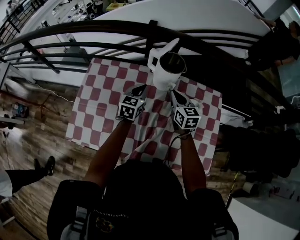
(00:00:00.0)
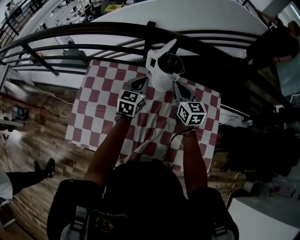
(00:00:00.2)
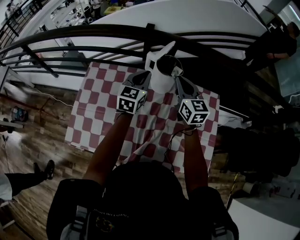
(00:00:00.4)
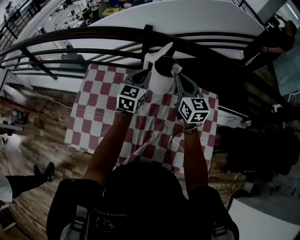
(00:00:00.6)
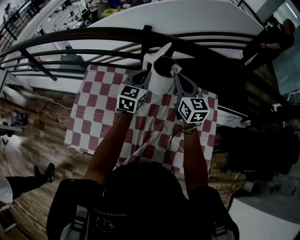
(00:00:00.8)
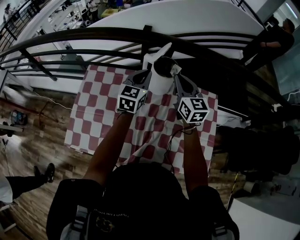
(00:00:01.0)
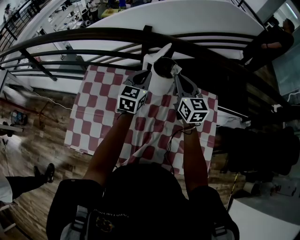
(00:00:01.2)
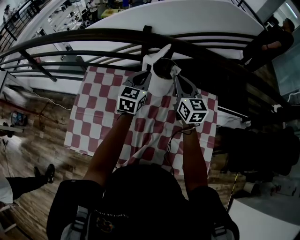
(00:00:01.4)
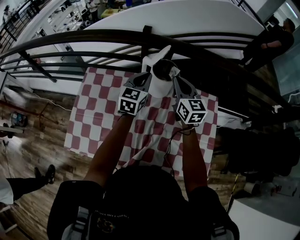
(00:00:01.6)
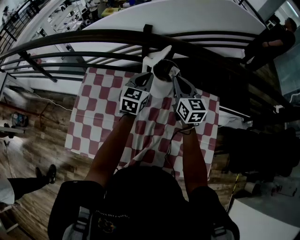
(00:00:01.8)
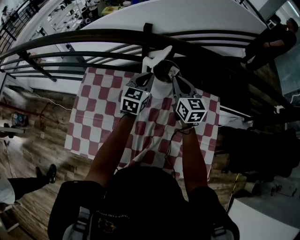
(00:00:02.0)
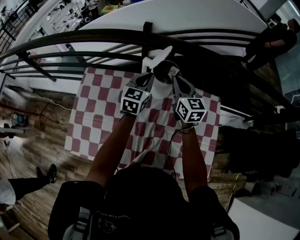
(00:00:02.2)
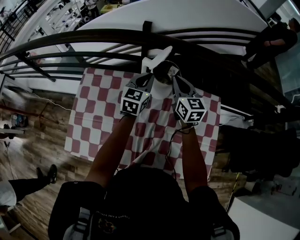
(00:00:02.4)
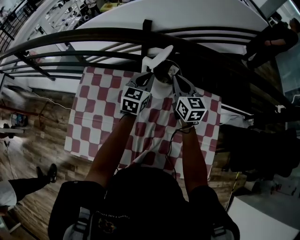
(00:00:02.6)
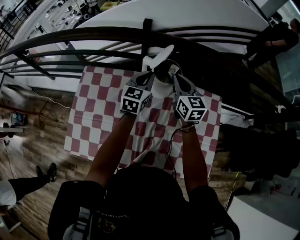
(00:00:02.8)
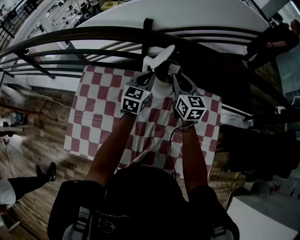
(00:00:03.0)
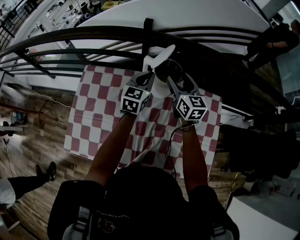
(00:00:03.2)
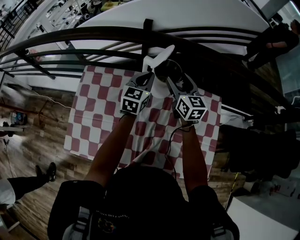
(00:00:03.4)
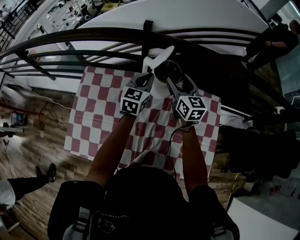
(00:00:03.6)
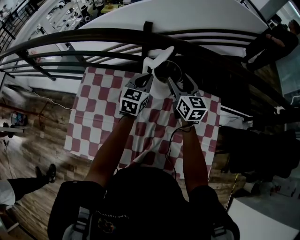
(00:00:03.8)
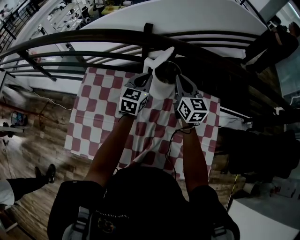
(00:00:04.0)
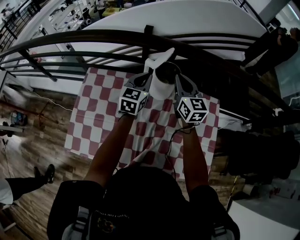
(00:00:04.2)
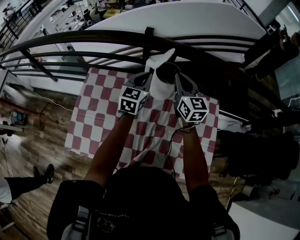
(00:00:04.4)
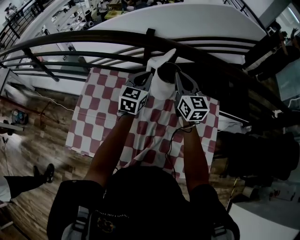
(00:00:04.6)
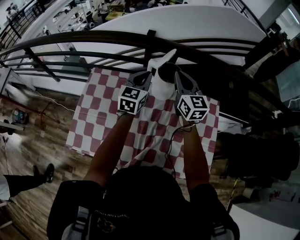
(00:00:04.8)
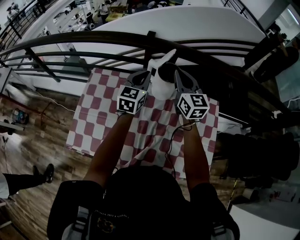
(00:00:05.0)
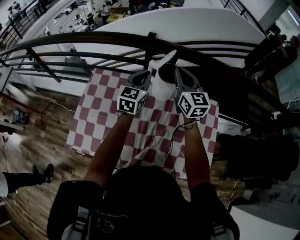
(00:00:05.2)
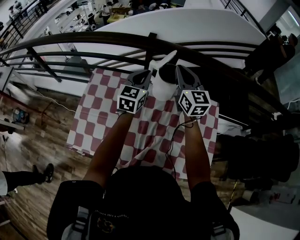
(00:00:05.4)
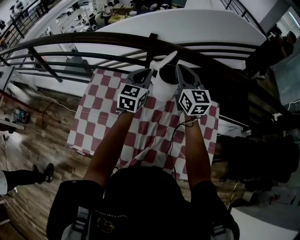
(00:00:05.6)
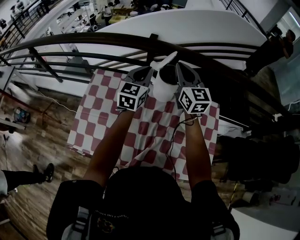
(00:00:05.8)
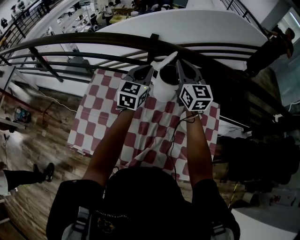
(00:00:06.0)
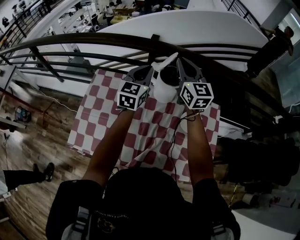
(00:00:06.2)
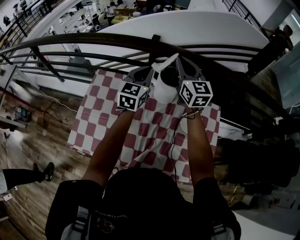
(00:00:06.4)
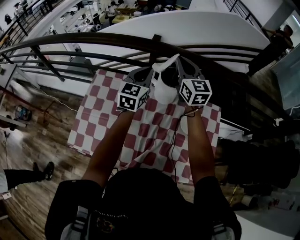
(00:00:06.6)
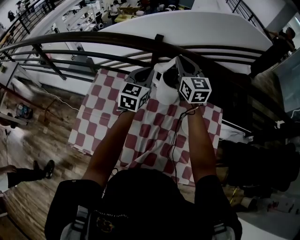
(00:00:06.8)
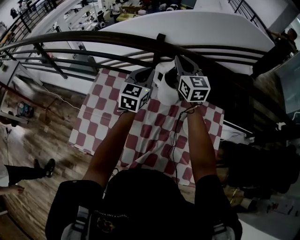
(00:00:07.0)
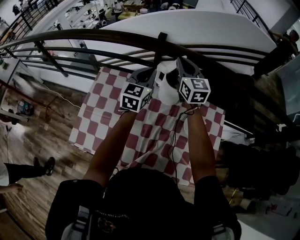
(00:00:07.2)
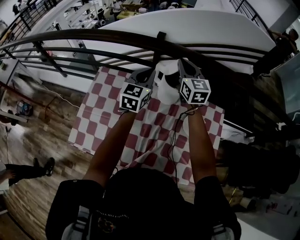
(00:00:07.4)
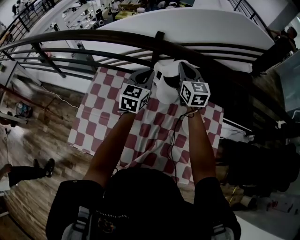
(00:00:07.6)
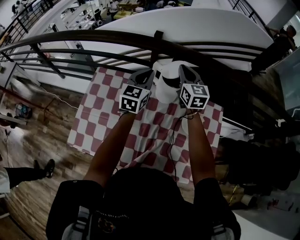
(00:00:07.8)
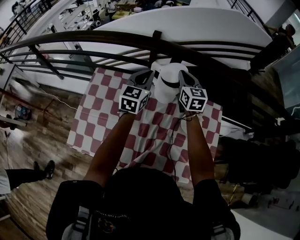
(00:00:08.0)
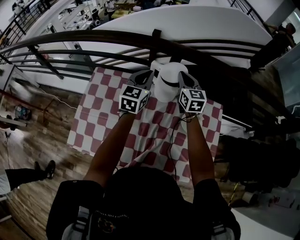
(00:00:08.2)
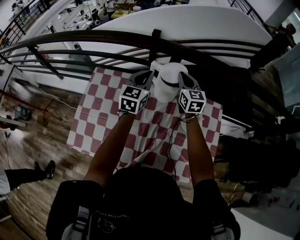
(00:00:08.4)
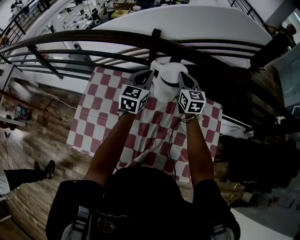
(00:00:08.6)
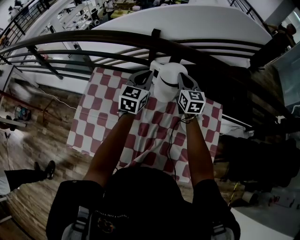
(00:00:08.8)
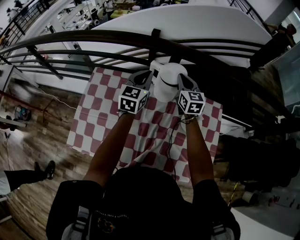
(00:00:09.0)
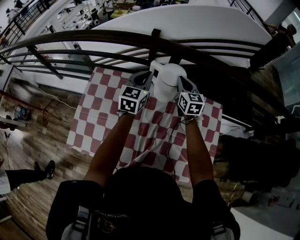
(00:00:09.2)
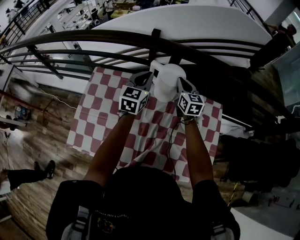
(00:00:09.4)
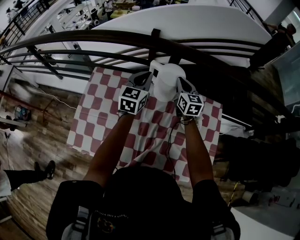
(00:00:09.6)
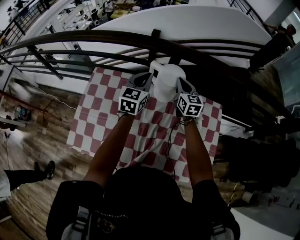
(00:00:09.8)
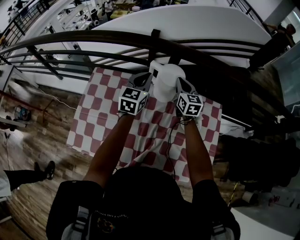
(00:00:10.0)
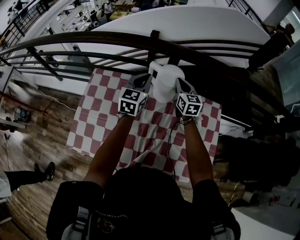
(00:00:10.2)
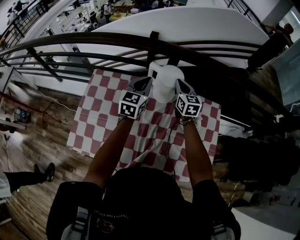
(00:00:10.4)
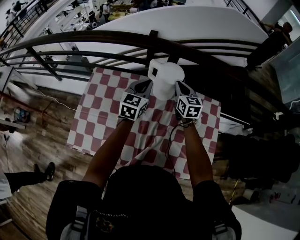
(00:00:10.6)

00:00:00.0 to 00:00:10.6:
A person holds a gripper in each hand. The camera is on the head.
00:00:00.0 to 00:00:01.6: Both grippers move upward and forward, roughly 10 cm.
00:00:01.6 to 00:00:03.0: The right gripper moves approximately 5 cm.
00:00:03.0 to 00:00:04.6: The left gripper changes place by some 5 cm. The right gripper travels upward by approximately 5 cm, and opens, then closes again.
00:00:04.6 to 00:00:06.0: The grippers both shift upward by roughly 5 cm.
00:00:06.0 to 00:00:07.6: The right gripper goes some 10 cm downward and forward.
00:00:07.6 to 00:00:09.0: The right gripper is displaced downward by about 10 cm.
00:00:09.0 to 00:00:10.6: The left gripper changes place by some 5 cm. Meanwhile the right gripper changes place by roughly 5 cm.

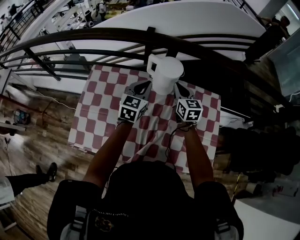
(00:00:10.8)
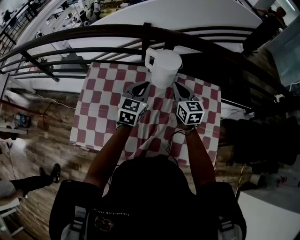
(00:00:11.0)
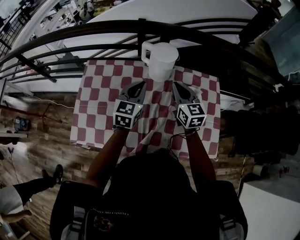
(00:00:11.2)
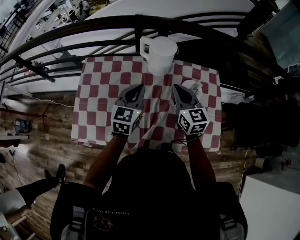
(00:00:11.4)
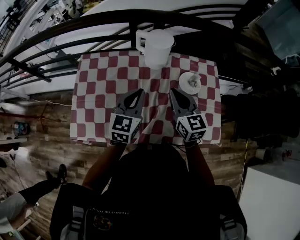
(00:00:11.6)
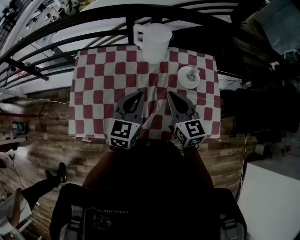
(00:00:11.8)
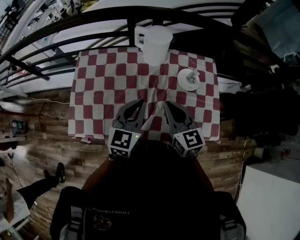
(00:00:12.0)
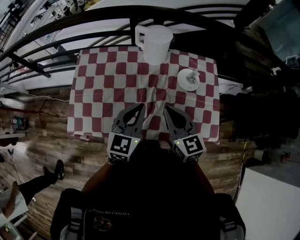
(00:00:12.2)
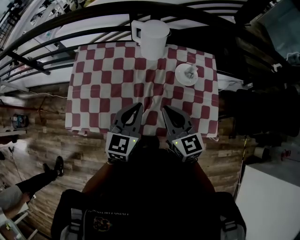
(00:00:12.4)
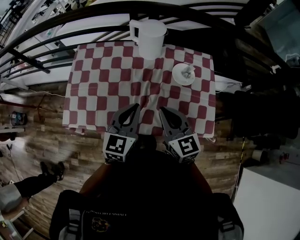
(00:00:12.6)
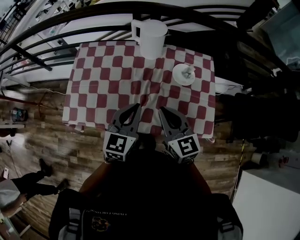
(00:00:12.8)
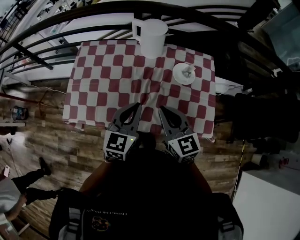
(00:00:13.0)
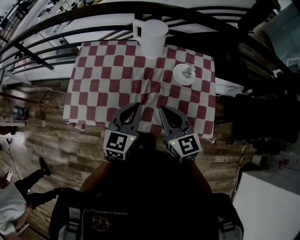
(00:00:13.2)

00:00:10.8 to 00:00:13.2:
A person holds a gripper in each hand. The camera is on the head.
00:00:10.8 to 00:00:12.0: The grippers both shift backward by about 25 cm.
00:00:12.0 to 00:00:13.2: The grippers both shift backward by roughly 5 cm.

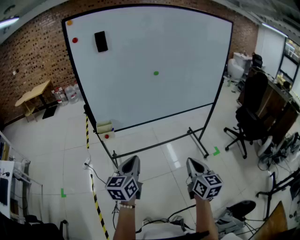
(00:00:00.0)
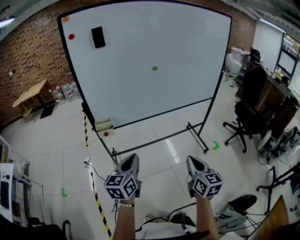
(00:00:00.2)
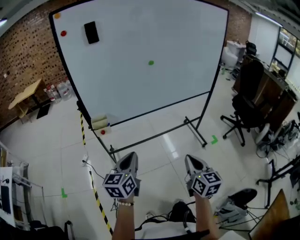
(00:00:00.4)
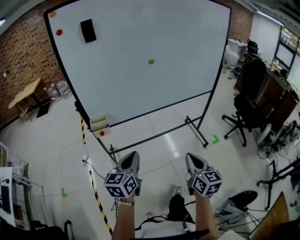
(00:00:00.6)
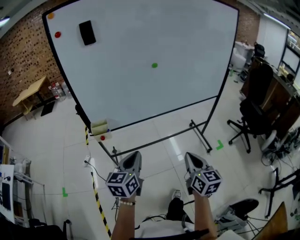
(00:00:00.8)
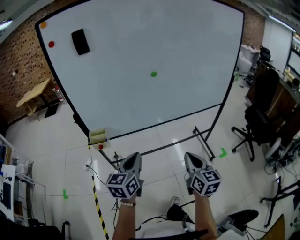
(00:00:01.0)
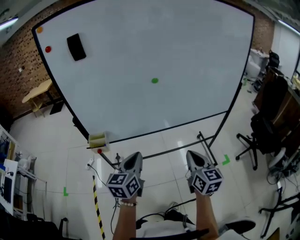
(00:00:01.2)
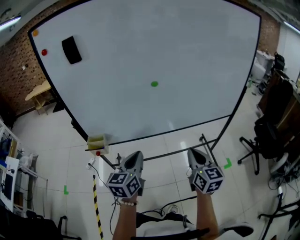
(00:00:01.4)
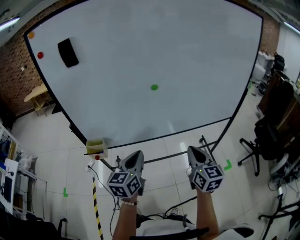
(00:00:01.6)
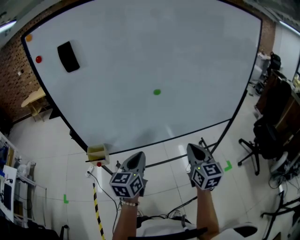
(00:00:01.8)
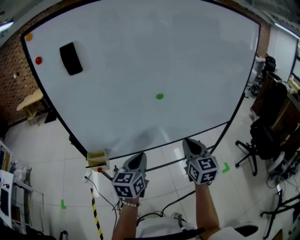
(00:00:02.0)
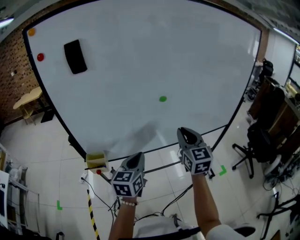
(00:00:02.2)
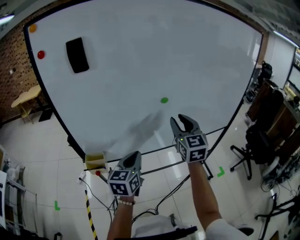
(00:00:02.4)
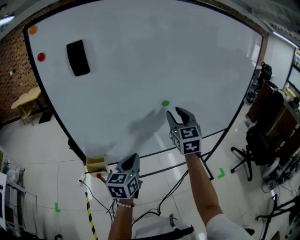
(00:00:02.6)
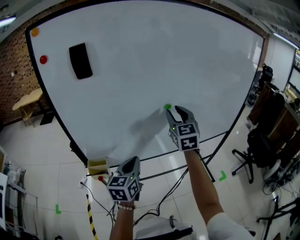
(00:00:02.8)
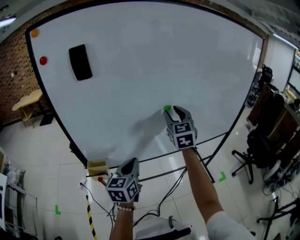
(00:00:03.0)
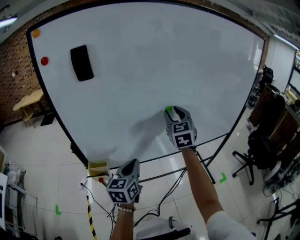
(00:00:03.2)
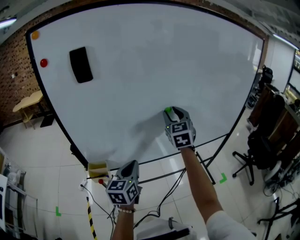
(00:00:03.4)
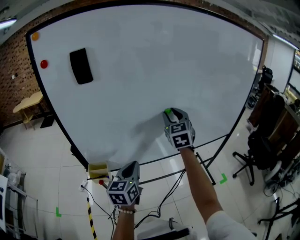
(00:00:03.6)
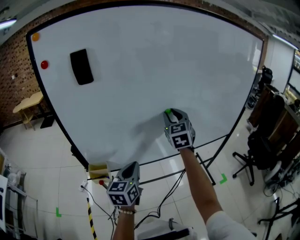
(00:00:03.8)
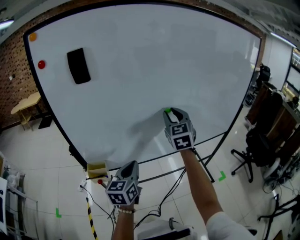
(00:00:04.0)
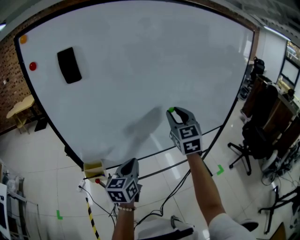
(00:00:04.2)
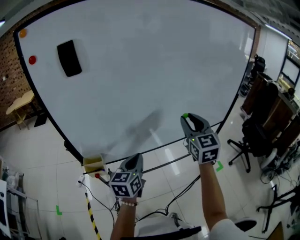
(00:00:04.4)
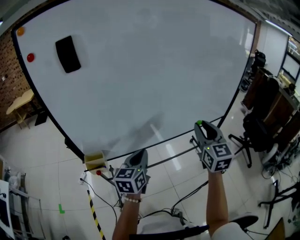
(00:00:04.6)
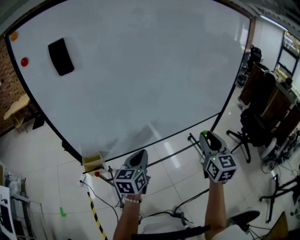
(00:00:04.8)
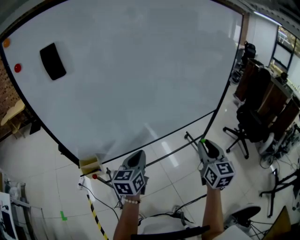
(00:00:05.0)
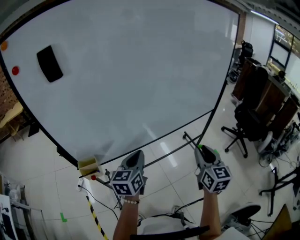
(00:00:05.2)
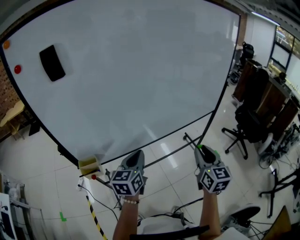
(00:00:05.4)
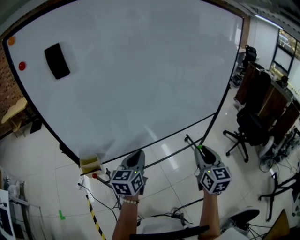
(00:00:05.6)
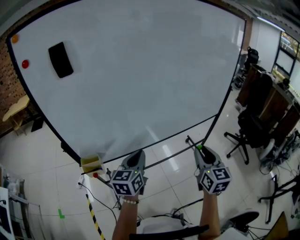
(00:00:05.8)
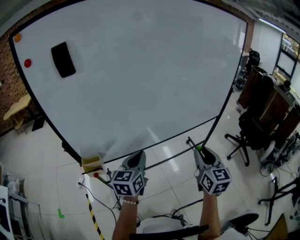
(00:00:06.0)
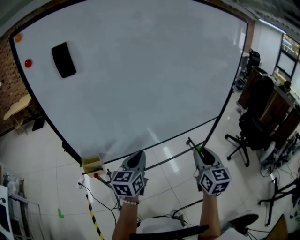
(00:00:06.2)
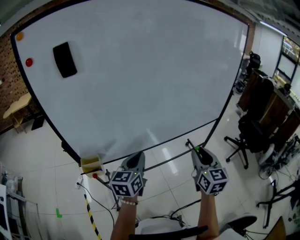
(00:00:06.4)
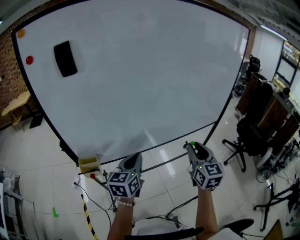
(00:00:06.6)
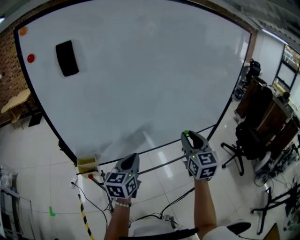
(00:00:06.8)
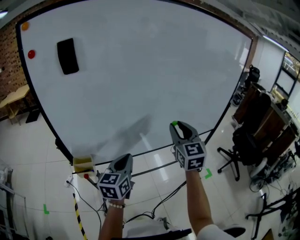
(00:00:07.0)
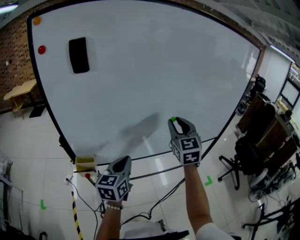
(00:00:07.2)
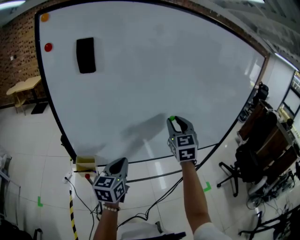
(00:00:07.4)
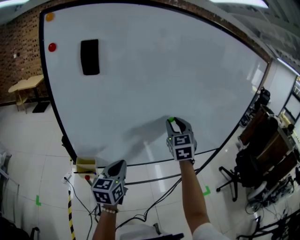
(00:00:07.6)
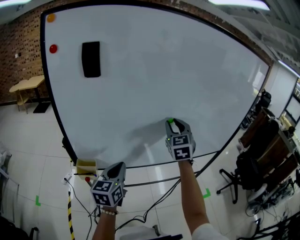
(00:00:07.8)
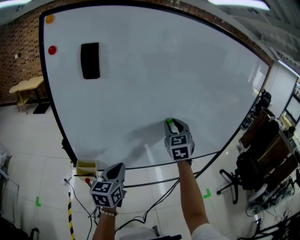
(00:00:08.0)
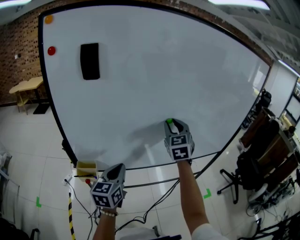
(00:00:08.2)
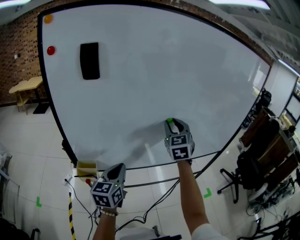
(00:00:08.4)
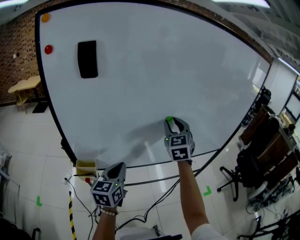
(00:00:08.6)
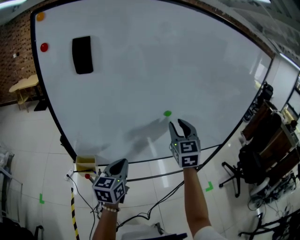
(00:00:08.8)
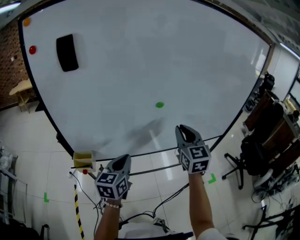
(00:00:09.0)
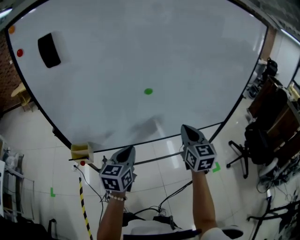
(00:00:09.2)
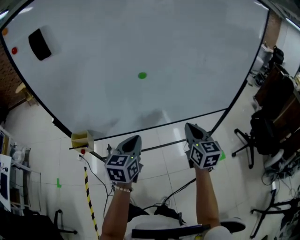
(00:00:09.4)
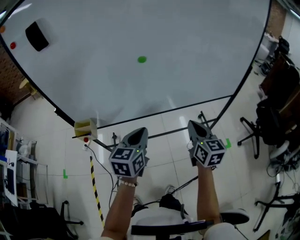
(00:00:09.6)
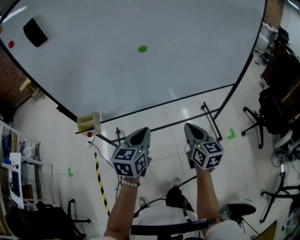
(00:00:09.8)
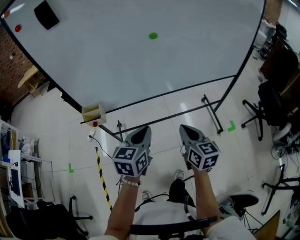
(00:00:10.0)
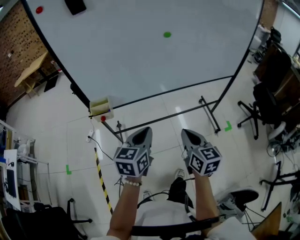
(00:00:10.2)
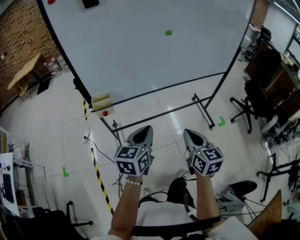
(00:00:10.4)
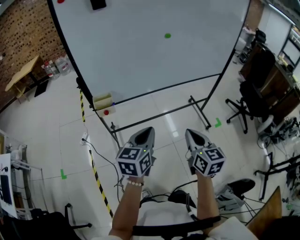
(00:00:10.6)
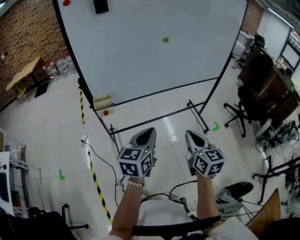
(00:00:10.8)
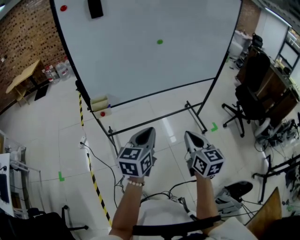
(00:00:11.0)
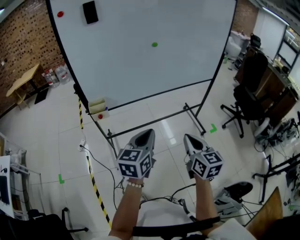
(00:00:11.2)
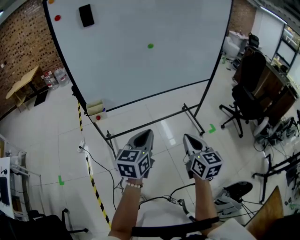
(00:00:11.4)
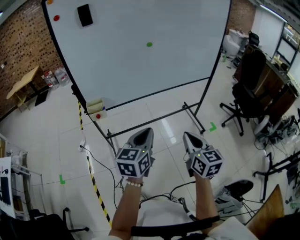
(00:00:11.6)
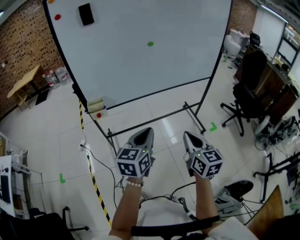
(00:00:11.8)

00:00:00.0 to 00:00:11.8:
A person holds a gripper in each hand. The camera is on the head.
00:00:00.0 to 00:00:01.4: The grippers both shift forward by some 30 cm.
00:00:01.4 to 00:00:03.0: The right gripper heads forward, to the left and upward, covering approximately 35 cm, rotates roughly 30 degrees, and opens, while the left gripper goes about 15 cm forward and to the left.
00:00:03.0 to 00:00:04.4: The right gripper travels backward and to the right by roughly 15 cm.
00:00:04.4 to 00:00:06.0: The right gripper travels backward, downward and to the right by roughly 15 cm.
00:00:06.0 to 00:00:07.4: The right gripper goes approximately 25 cm forward, to the left and upward, and changes its angle by some 30 degrees. The left gripper goes some 5 cm to the left.
00:00:07.4 to 00:00:08.8: The grippers stay close to where they were, moving slightly.
00:00:08.8 to 00:00:10.4: The right gripper shifts approximately 40 cm backward and downward, turns by about 30 degrees, and closes. The left gripper is displaced backward by some 20 cm.
00:00:10.4 to 00:00:11.8: Both grippers move backward, to the right and upward, some 15 cm.
